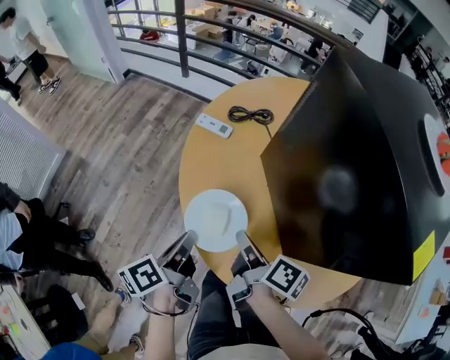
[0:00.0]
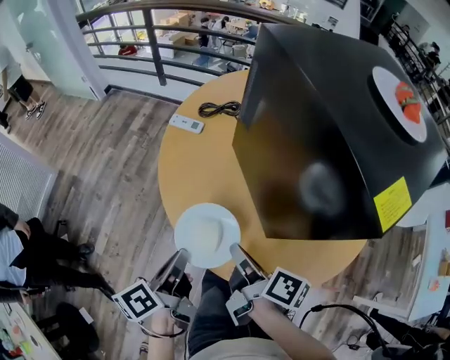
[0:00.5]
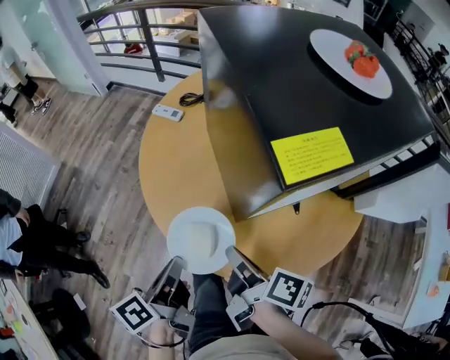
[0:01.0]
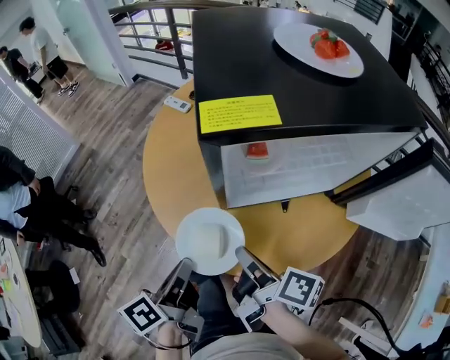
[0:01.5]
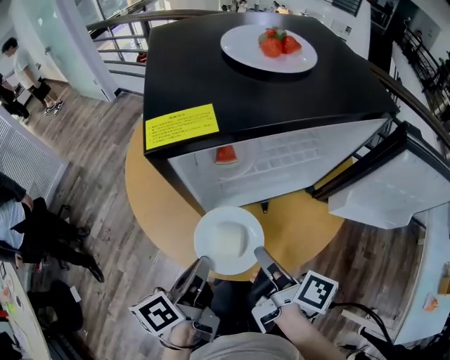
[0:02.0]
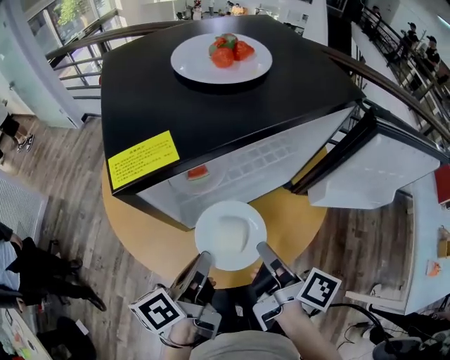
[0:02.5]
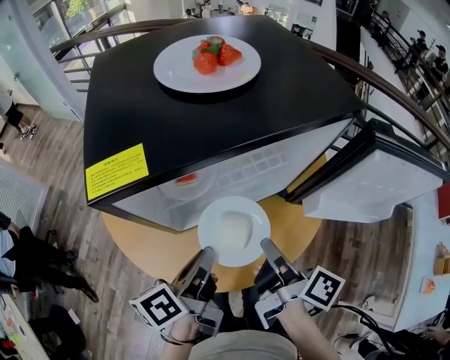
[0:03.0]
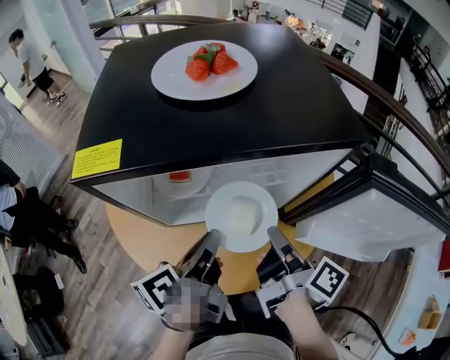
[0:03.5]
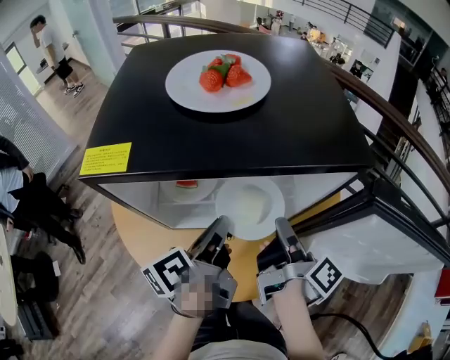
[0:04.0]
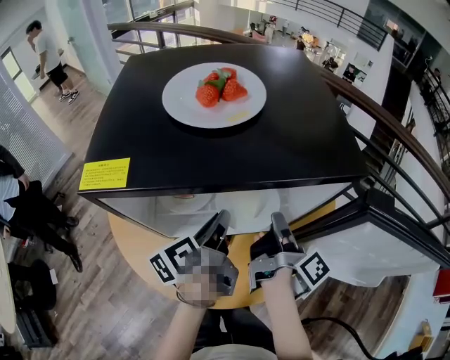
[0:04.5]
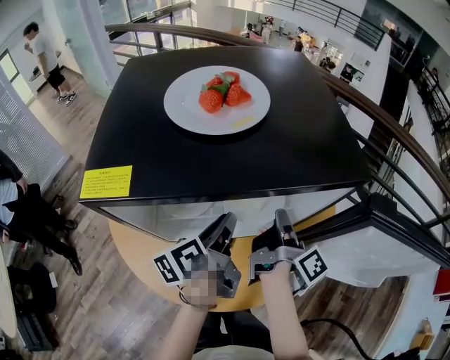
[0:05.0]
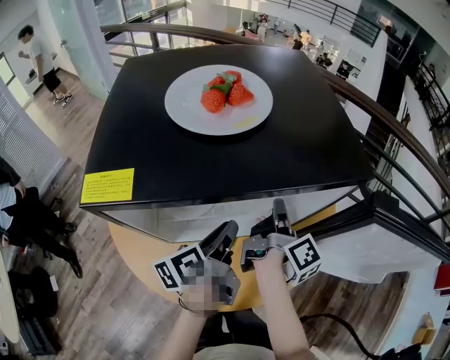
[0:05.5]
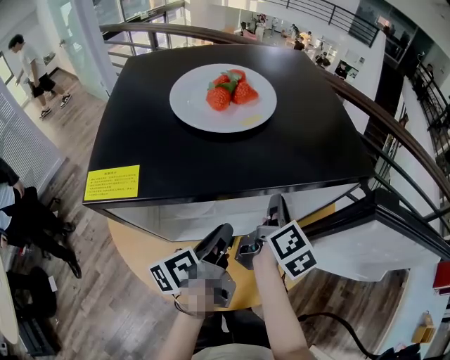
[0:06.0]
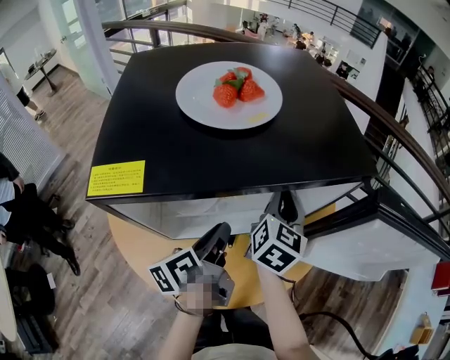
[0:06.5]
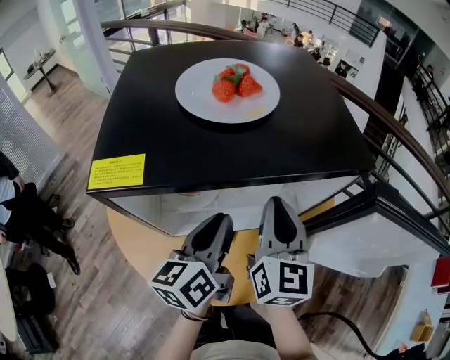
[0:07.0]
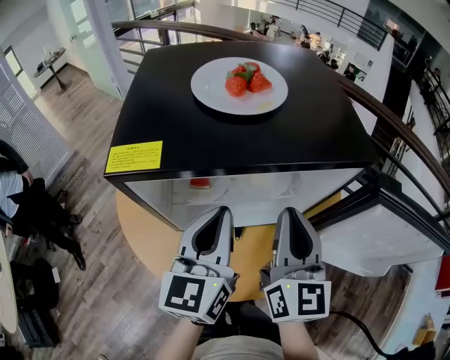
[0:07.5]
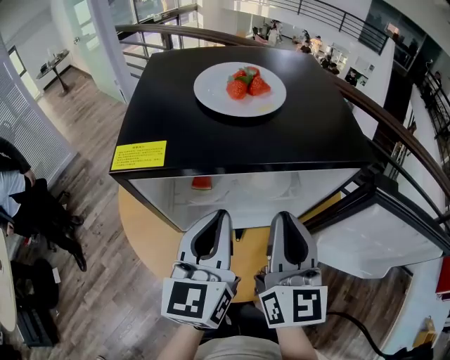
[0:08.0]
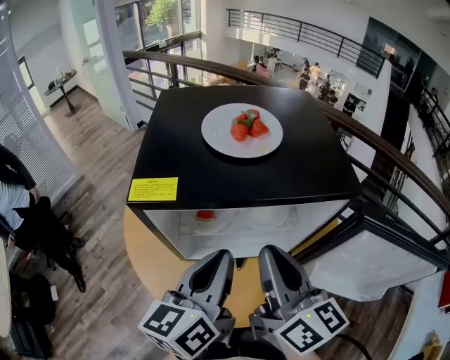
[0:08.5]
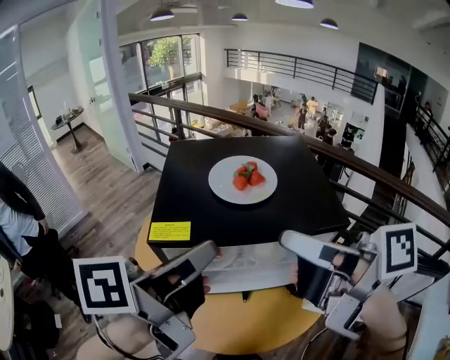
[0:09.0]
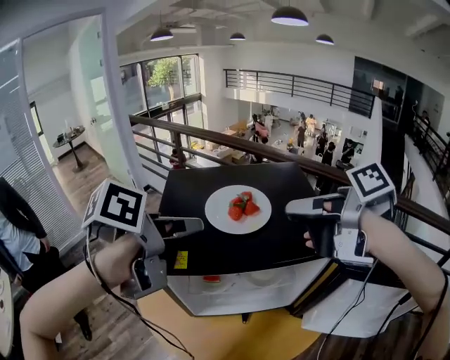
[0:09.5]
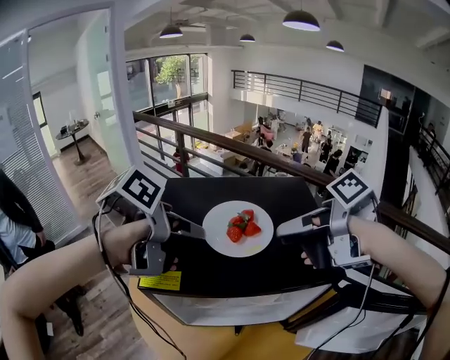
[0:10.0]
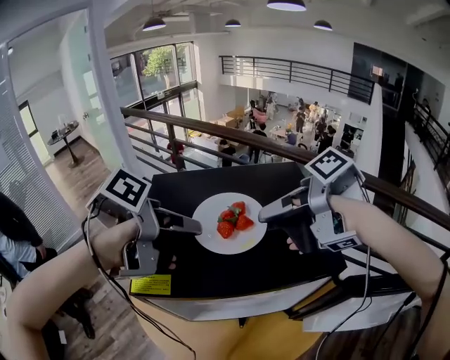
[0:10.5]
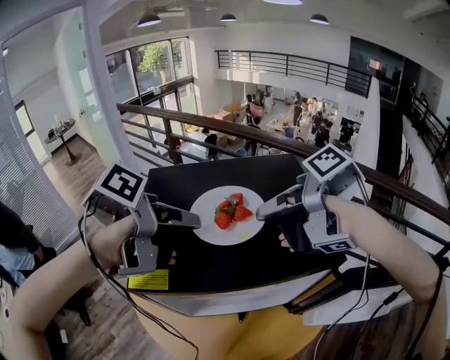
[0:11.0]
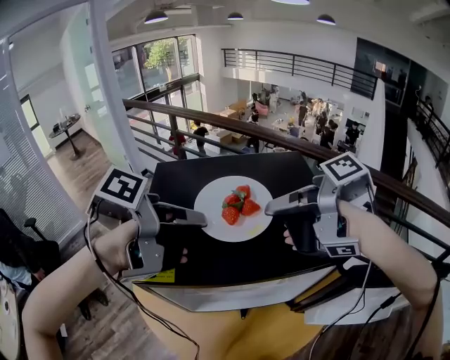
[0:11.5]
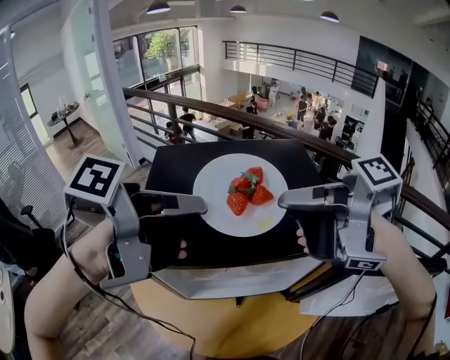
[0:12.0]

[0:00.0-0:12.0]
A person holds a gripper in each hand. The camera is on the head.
0.0 to 2.0 s: The two grippers go about 35 cm to the right and backward.
2.0 to 4.0 s: The two grippers go about 20 cm forward and to the right.
4.0 to 6.0 s: The right gripper is displaced forward by roughly 10 cm, and changes its angle by approximately 40 degrees.
6.0 to 8.0 s: The right gripper shifts about 20 cm upward and backward, and rolls counterclockwise, seen from behind, by about 40 degrees. The left gripper moves upward, some 15 cm, and twists approximately 50 degrees clockwise, seen from behind.
8.0 to 10.0 s: The left gripper moves some 20 cm, angles its fingers downward, by approximately 40 degrees, and opens. The right gripper changes place by about 20 cm, angles its fingers downward, by some 30 degrees, and opens up.
10.0 to 12.0 s: The right gripper shifts by about 5 cm, swivels about 20 degrees, and closes its fingers. Meanwhile the left gripper shifts by about 10 cm, and changes its angle by roughly 20 degrees.

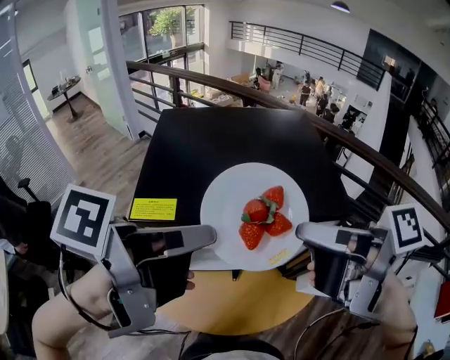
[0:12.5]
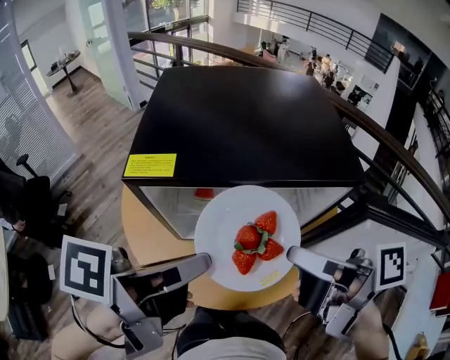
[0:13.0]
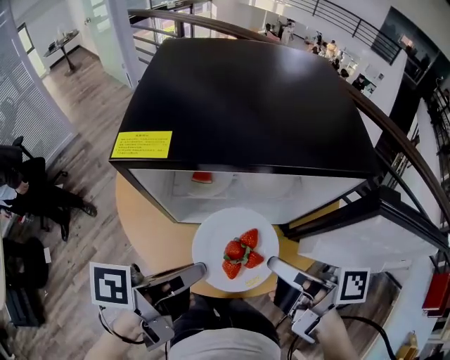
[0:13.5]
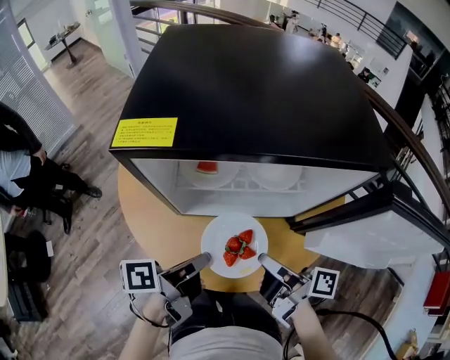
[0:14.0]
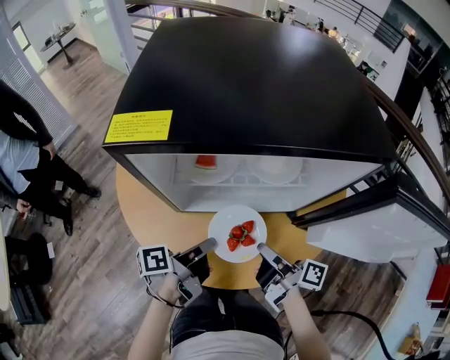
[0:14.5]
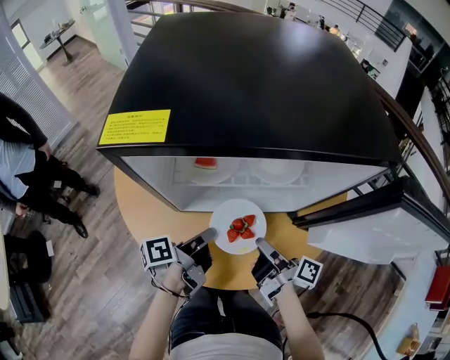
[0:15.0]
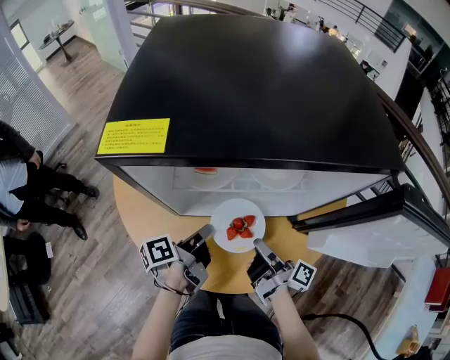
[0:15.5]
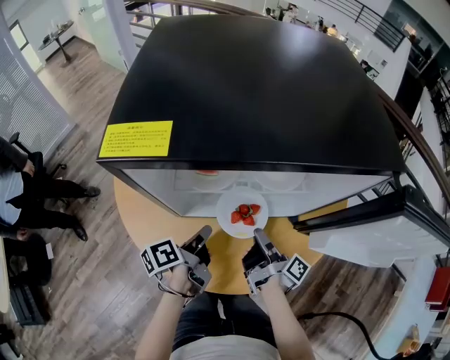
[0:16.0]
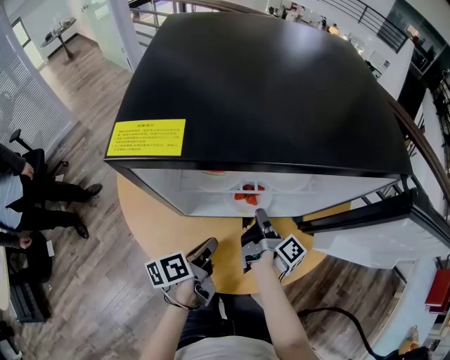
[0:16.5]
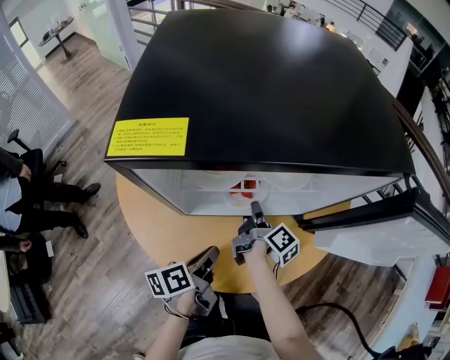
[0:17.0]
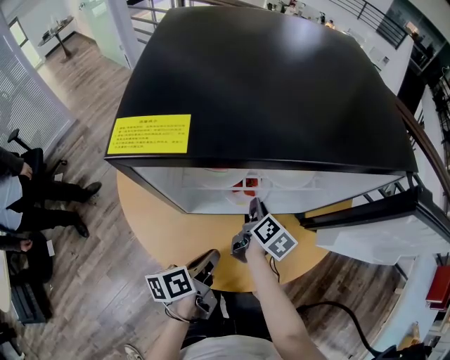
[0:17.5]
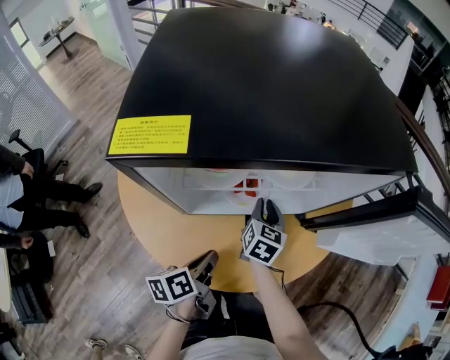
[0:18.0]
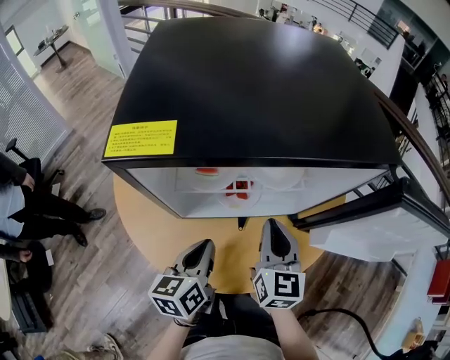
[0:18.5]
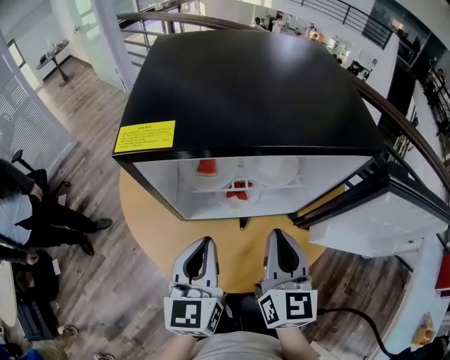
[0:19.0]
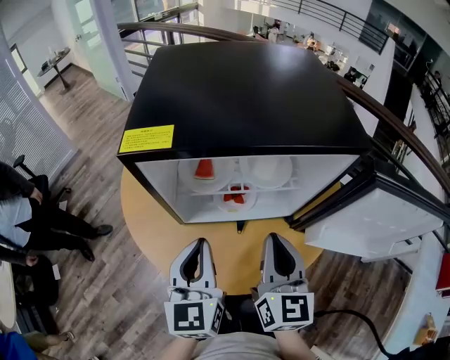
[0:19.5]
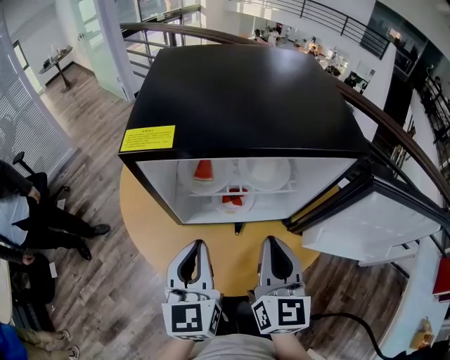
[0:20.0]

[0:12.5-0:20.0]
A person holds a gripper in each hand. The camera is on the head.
12.5 to 14.5 s: Both grippers move downward, some 35 cm. The left gripper rotates about 20 degrees. Meanwhile the right gripper changes its angle by some 20 degrees.
14.5 to 16.5 s: The right gripper shifts roughly 15 cm forward and downward, and swivels some 30 degrees.
16.5 to 18.0 s: The right gripper rolls counterclockwise, seen from behind, by approximately 70 degrees.
18.0 to 20.0 s: The left gripper goes roughly 20 cm upward, and rotates around the line of its fingers by roughly 50 degrees, clockwise from behind, while the right gripper goes some 25 cm upward and backward, and swivels about 30 degrees.

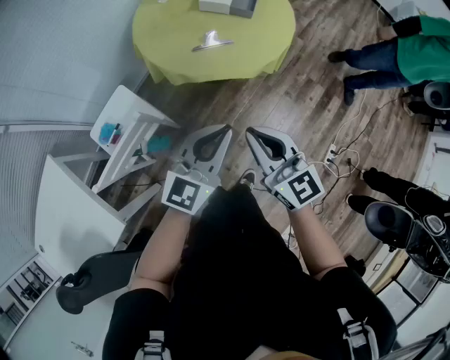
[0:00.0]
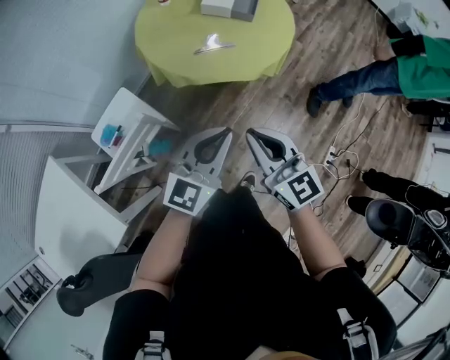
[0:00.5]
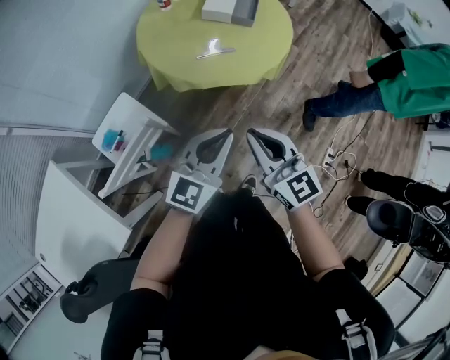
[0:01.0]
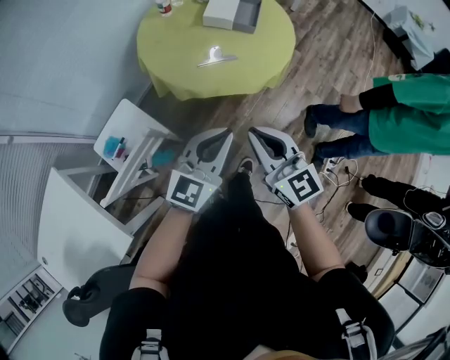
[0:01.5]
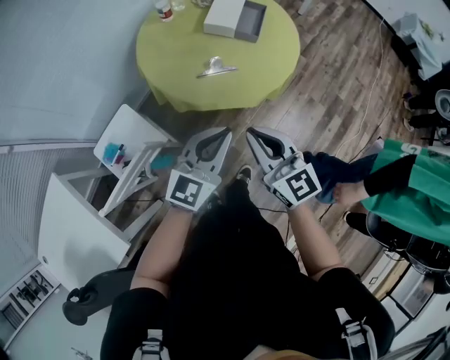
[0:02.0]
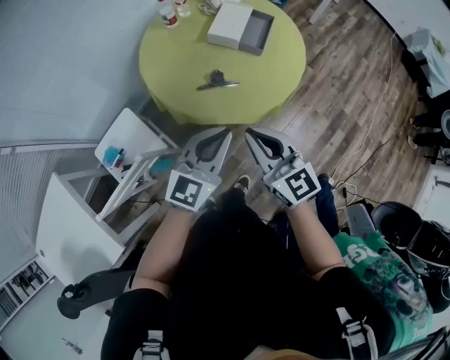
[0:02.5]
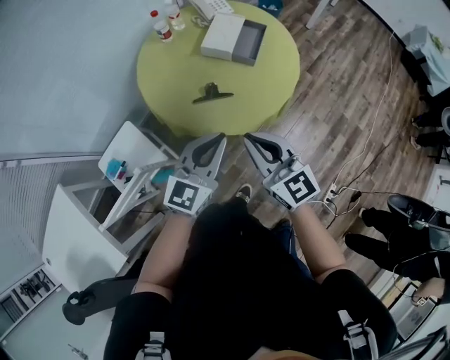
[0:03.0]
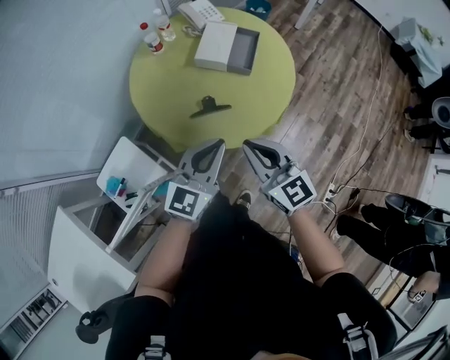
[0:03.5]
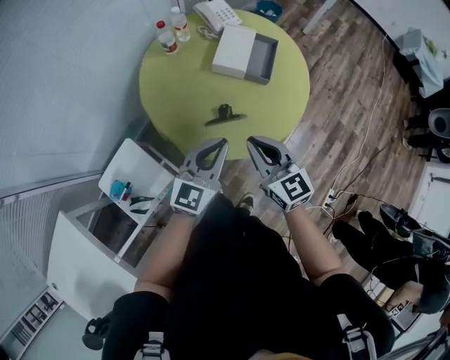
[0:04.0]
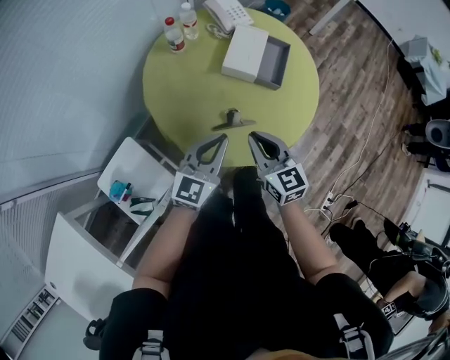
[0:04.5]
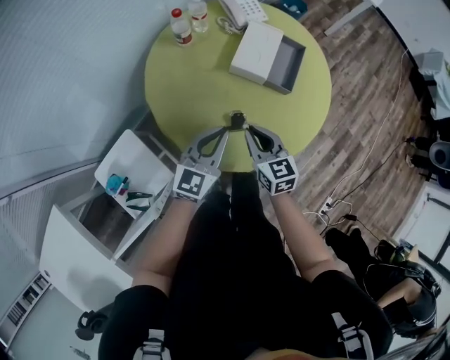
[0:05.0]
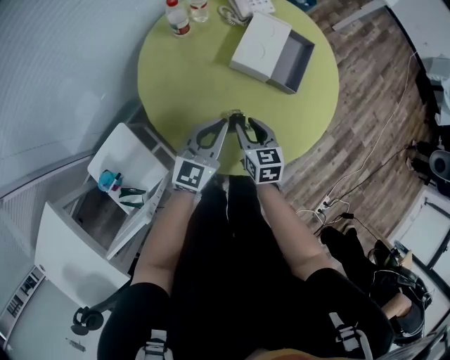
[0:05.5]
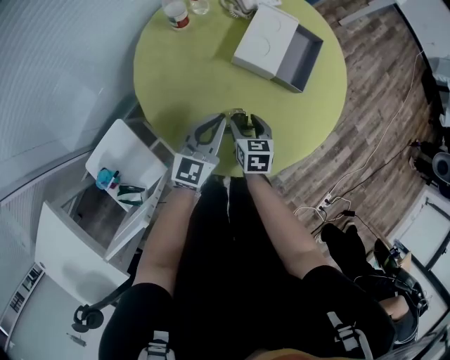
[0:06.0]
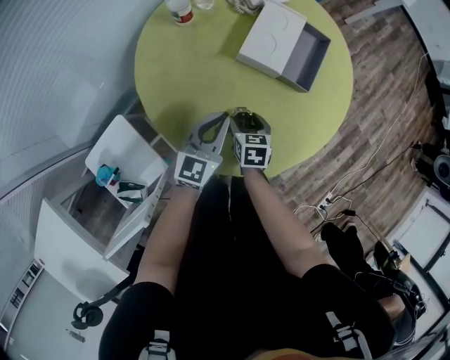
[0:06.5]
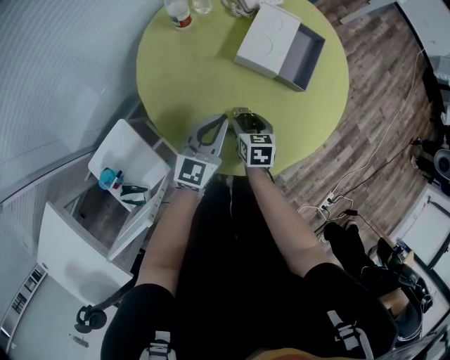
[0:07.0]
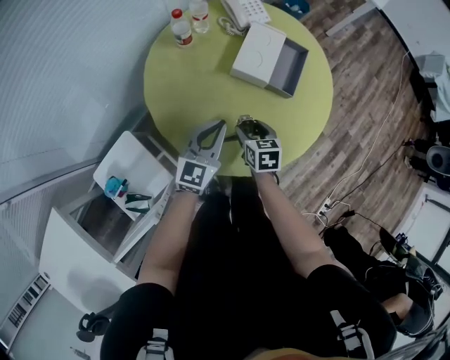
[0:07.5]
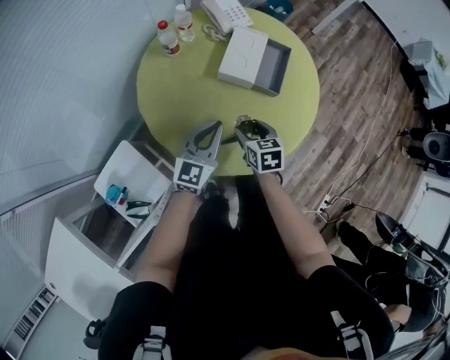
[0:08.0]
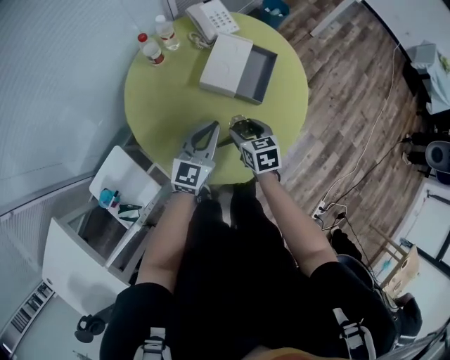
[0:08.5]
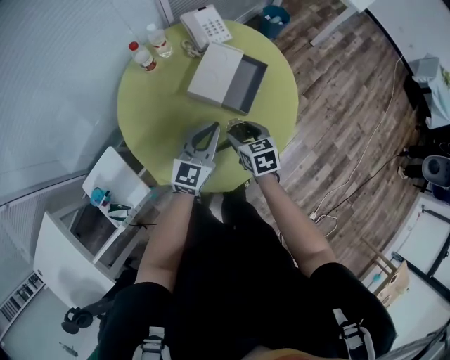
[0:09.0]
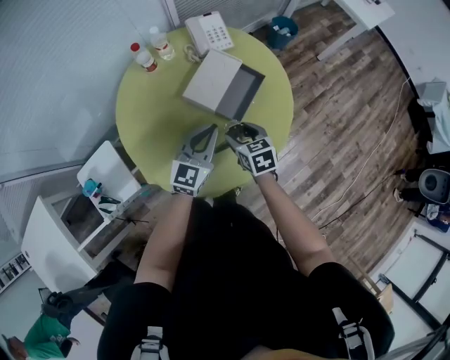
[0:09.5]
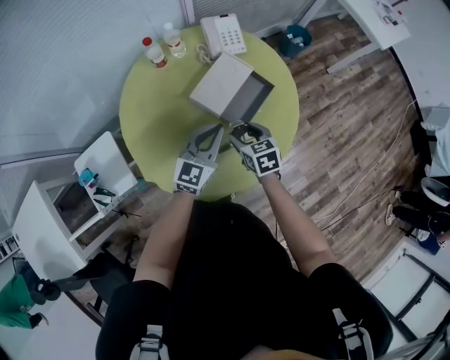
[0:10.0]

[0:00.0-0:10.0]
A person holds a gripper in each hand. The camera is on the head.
0.0 to 2.0 s: The grippers both shift forward by roughly 10 cm.
2.0 to 4.0 s: The grippers both shift forward by about 20 cm.
4.0 to 6.0 s: Both grippers travel together downward and forward, roughly 30 cm. The right gripper angles its fingers downward, by roughly 30 degrees, and opens up.
6.0 to 8.0 s: The two grippers go about 10 cm upward.
8.0 to 10.0 s: Both grippers travel together to the right and forward, about 20 cm. The right gripper changes its angle by some 30 degrees.
